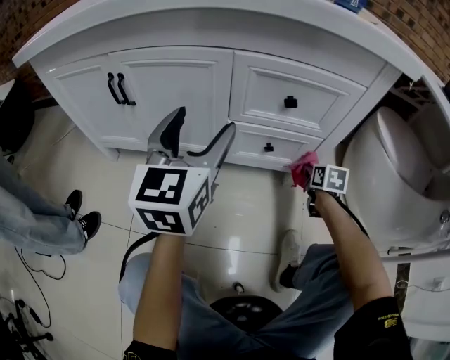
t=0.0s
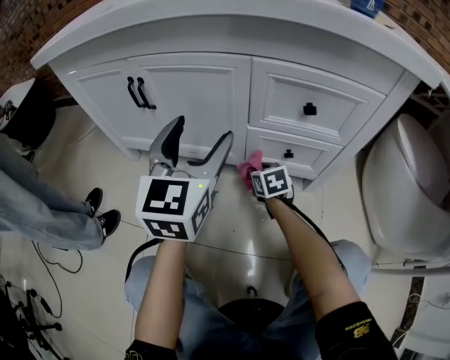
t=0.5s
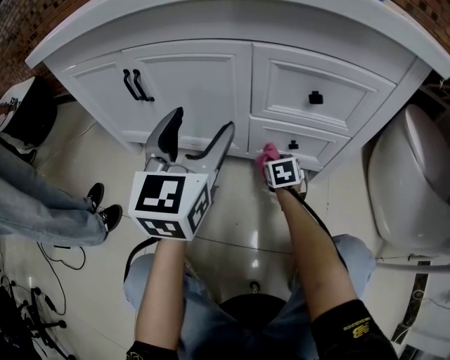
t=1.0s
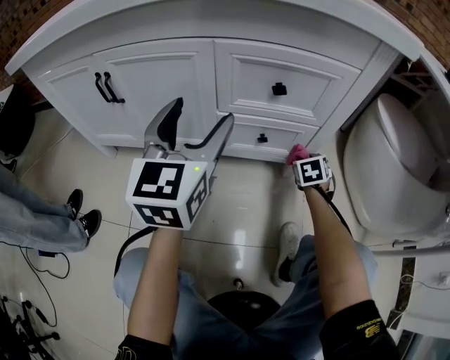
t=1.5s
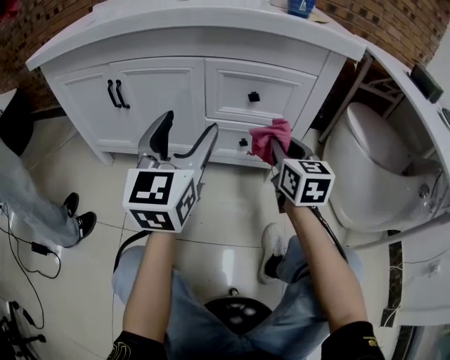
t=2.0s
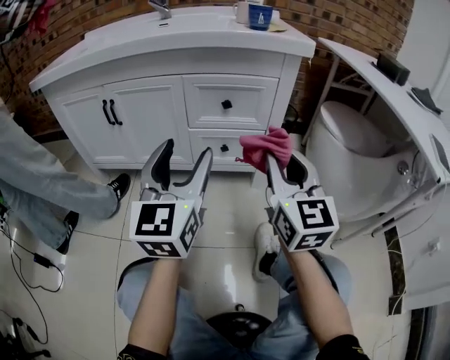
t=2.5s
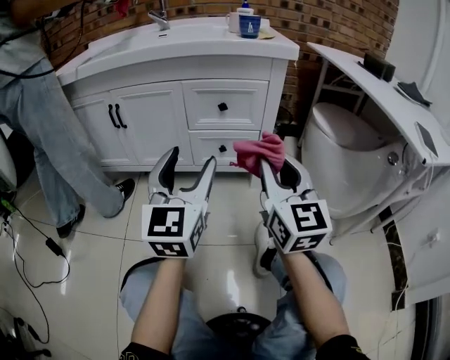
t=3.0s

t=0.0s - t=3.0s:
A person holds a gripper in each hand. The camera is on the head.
t=0.0s - t=1.5s: The right gripper rotates approximately 30 degrees.
t=1.5s - t=3.0s: The right gripper moves upward and backward, some 50 cm, and points its fingers about 60 degrees further upward. The left gripper heads backward, covering some 20 cm.

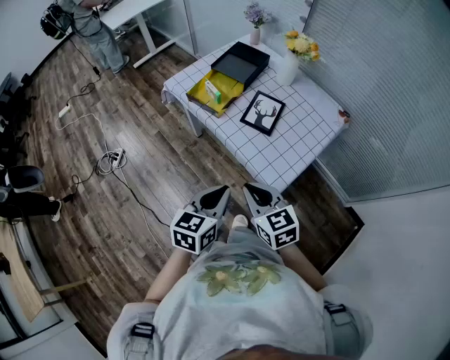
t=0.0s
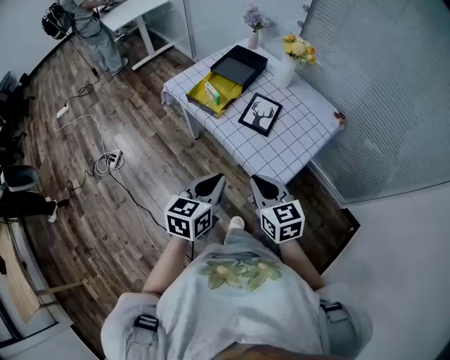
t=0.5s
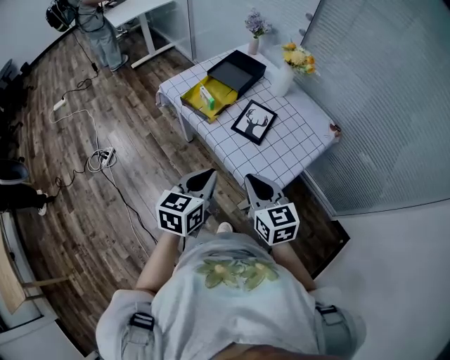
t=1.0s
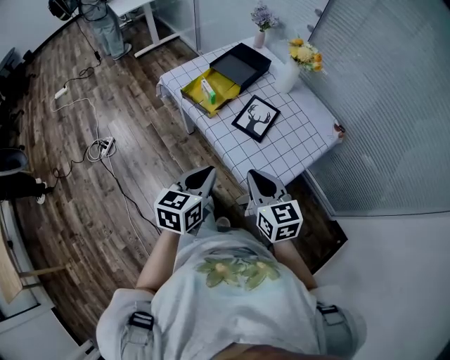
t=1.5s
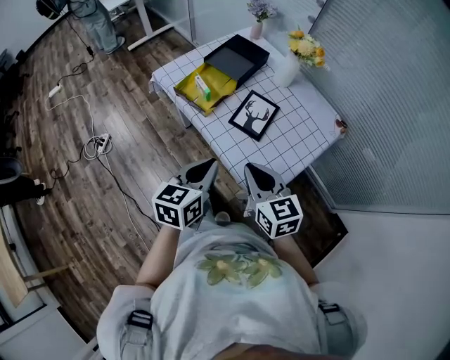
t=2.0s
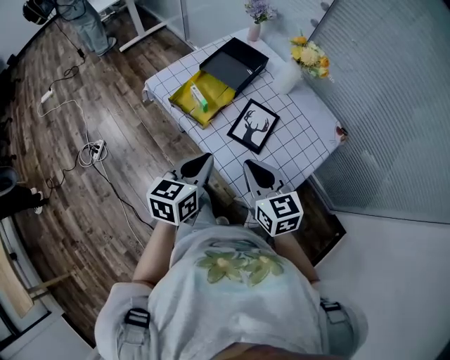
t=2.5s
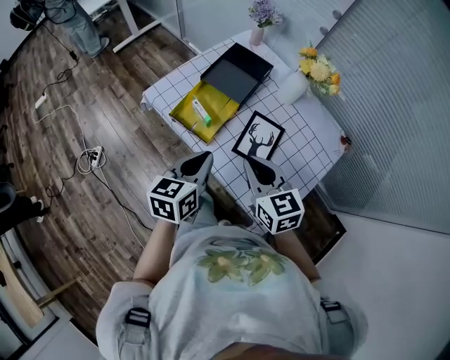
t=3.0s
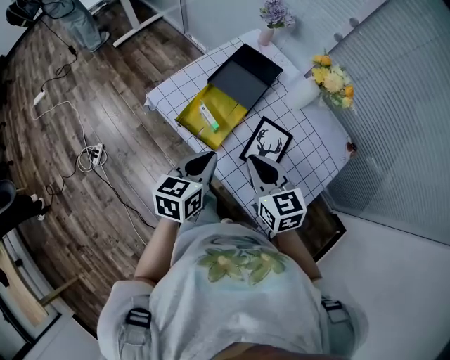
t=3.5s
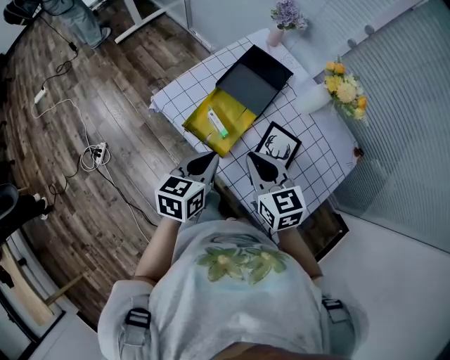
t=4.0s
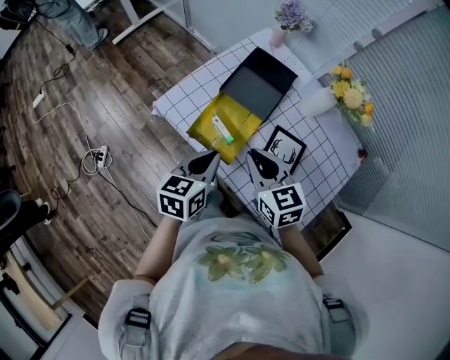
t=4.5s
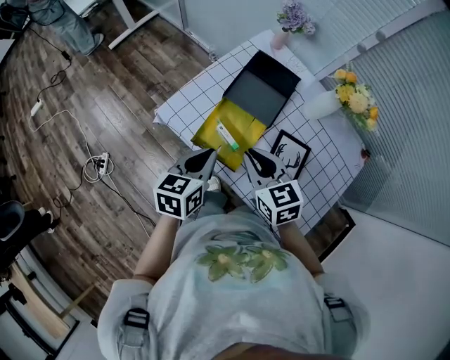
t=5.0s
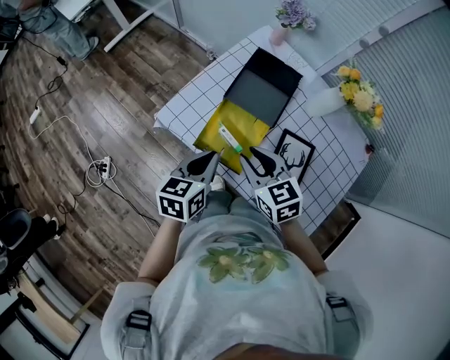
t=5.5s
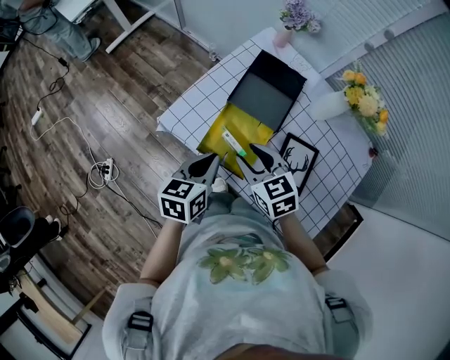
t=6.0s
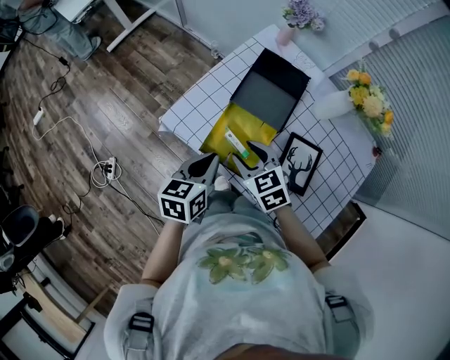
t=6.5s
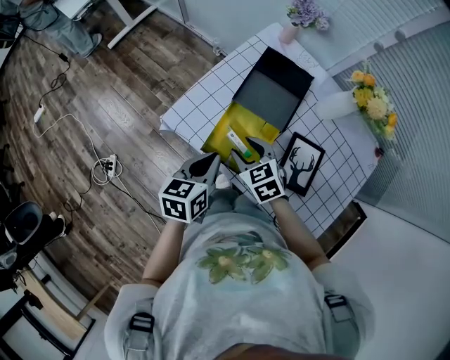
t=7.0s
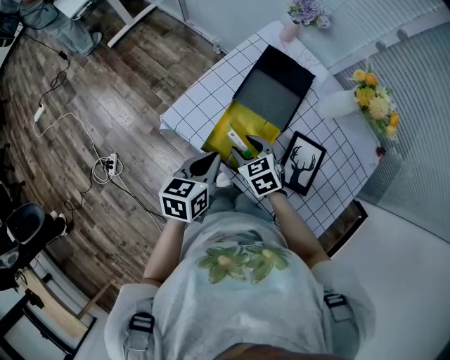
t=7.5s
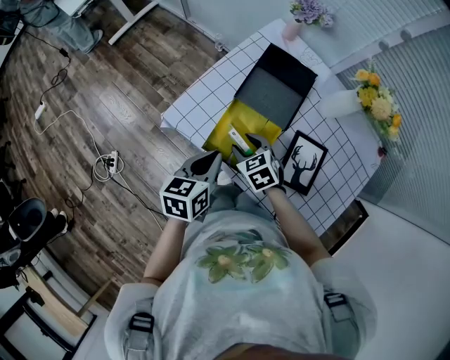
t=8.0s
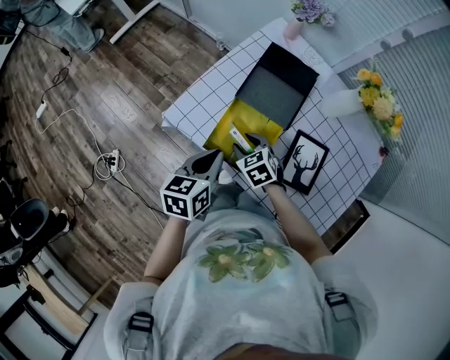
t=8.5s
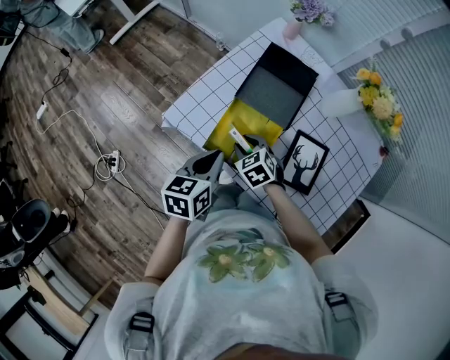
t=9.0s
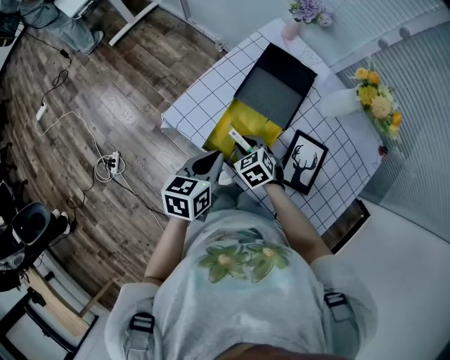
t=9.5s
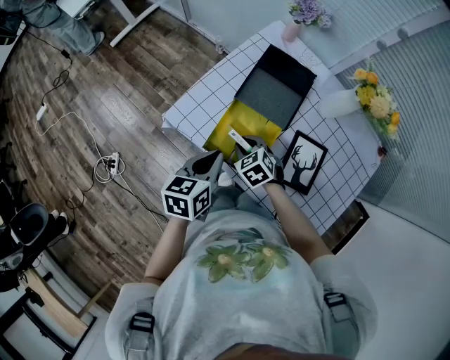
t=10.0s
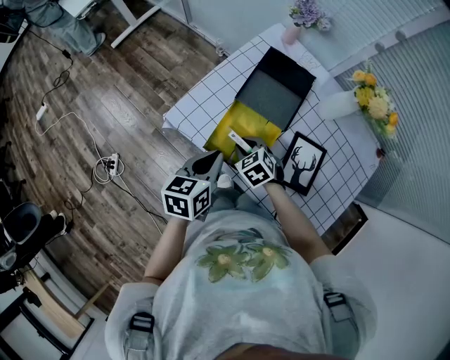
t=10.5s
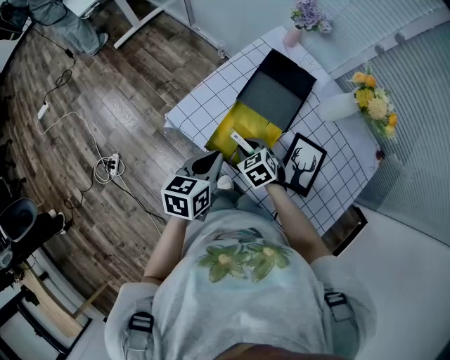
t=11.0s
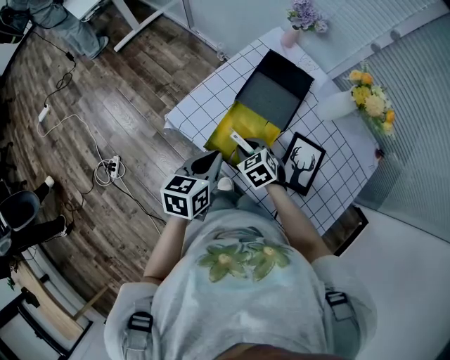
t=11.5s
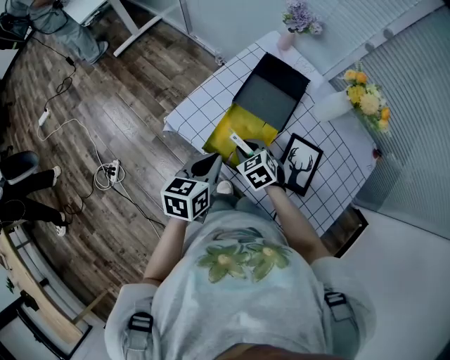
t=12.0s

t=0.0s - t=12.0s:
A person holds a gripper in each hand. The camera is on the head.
t=0.0s - t=2.0s: The grippers both shift forward by roughly 10 cm.
t=2.0s - t=4.0s: Both grippers travel together forward and to the left, roughly 25 cm.
t=4.0s - t=6.0s: The left gripper shifts approximately 10 cm forward and to the left; the right gripper travels forward, to the left and downward by about 15 cm, and opens.
t=6.0s - t=8.0s: The right gripper is displaced downward by approximately 15 cm.
t=8.0s - t=10.0s: The right gripper closes its fingers.
t=10.0s - t=12.0s: There are only small adjustments of the grippers.

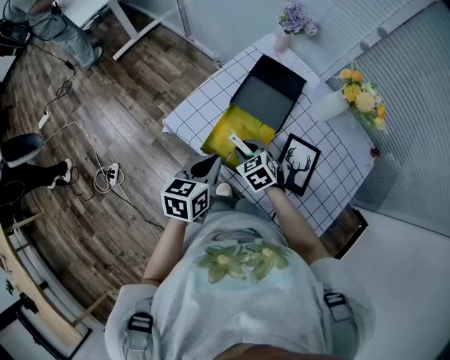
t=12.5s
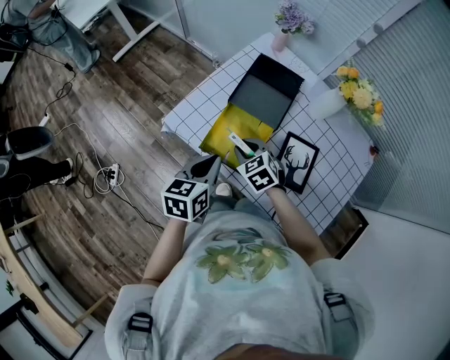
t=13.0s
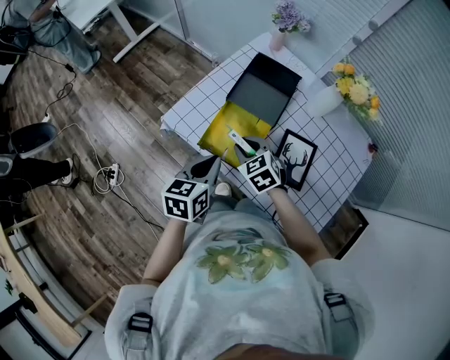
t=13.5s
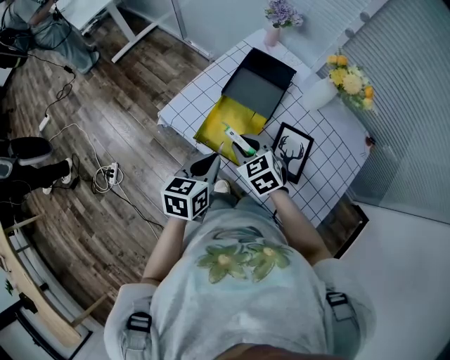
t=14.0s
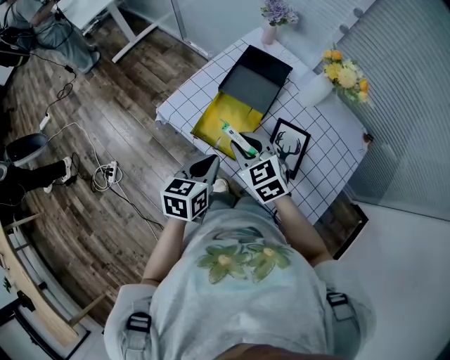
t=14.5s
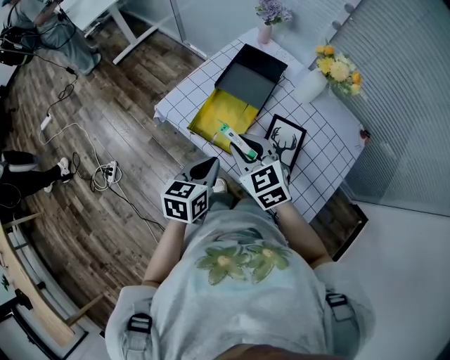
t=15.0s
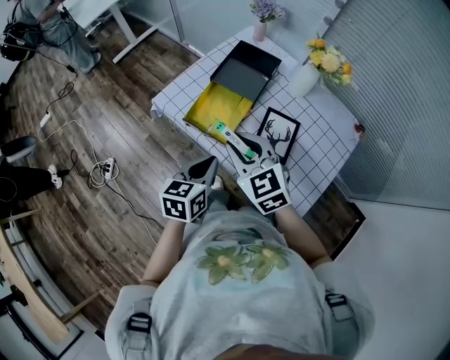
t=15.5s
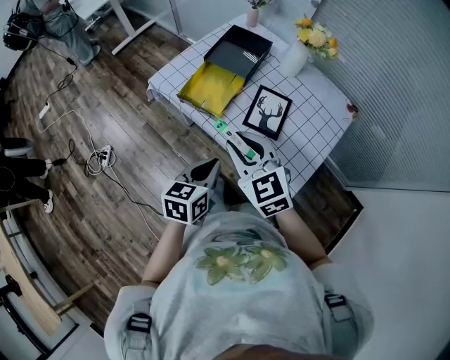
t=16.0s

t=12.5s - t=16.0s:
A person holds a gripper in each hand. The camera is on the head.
t=12.5s - t=14.5s: The left gripper is displaced backward by about 5 cm. Meanwhile the right gripper goes some 15 cm upward and backward.
t=14.5s - t=16.0s: The right gripper goes approximately 20 cm backward and upward, while the left gripper is displaced backward by about 20 cm.

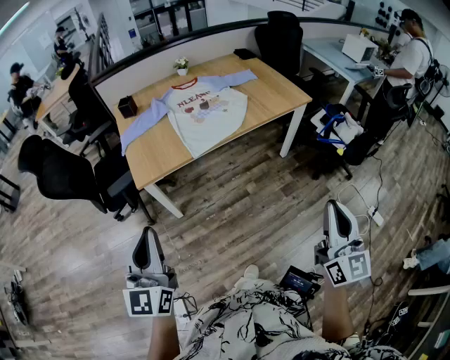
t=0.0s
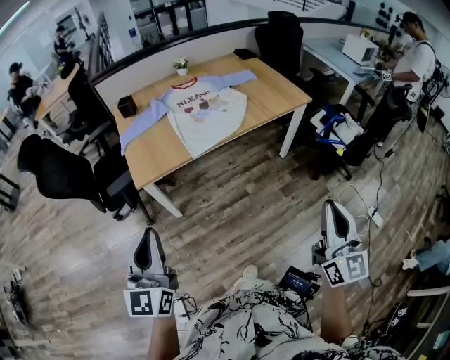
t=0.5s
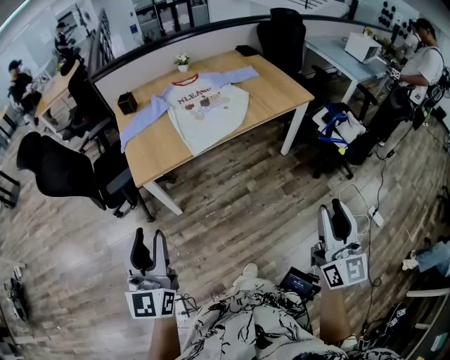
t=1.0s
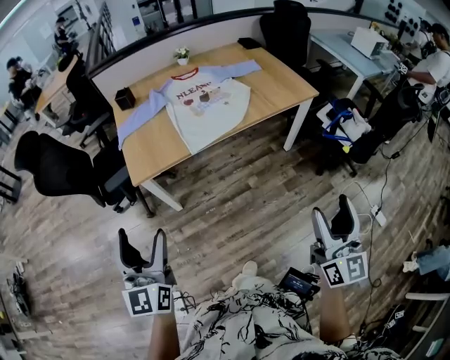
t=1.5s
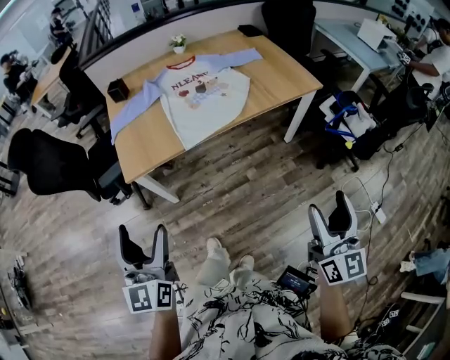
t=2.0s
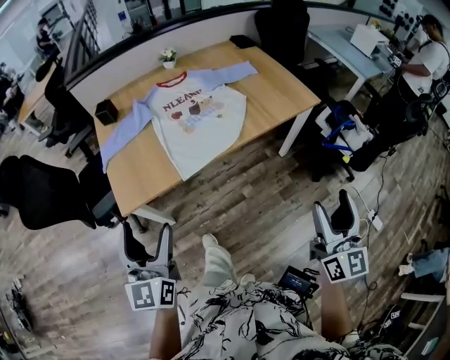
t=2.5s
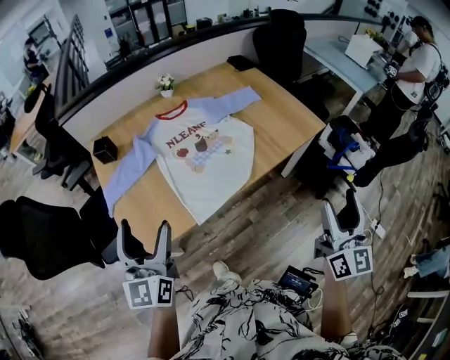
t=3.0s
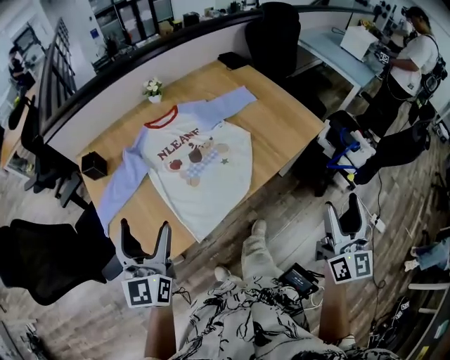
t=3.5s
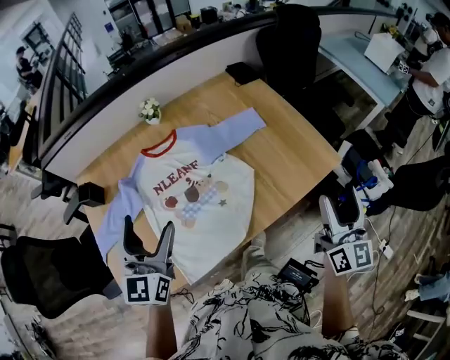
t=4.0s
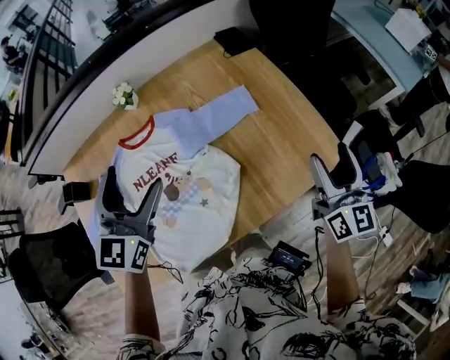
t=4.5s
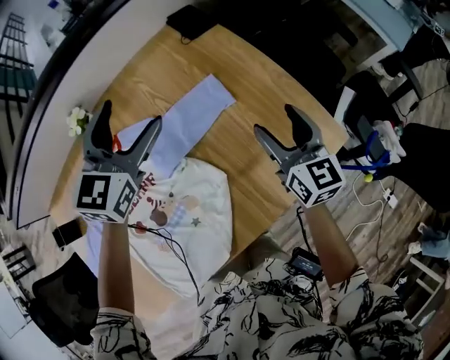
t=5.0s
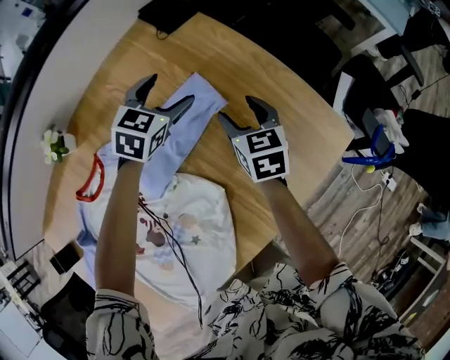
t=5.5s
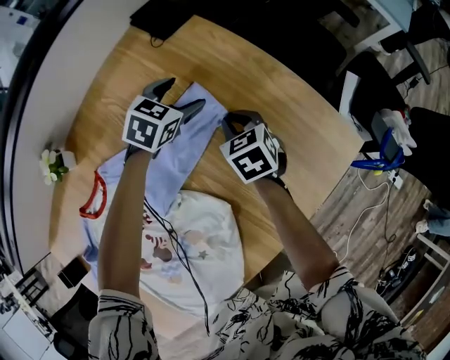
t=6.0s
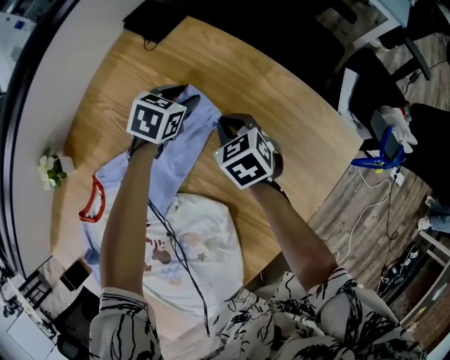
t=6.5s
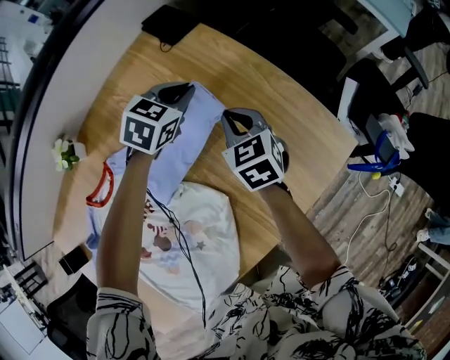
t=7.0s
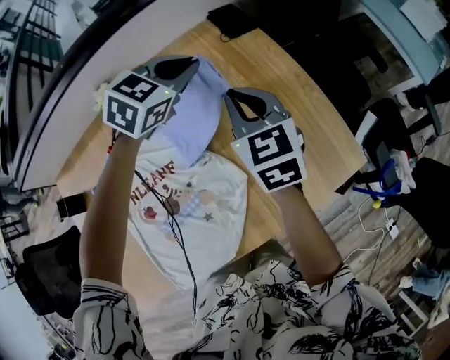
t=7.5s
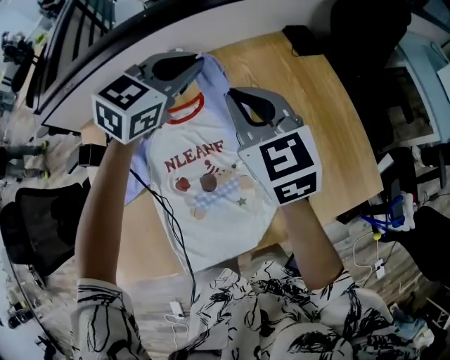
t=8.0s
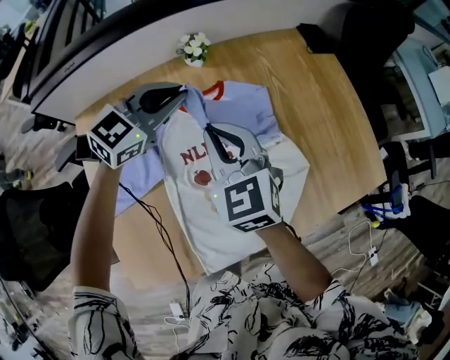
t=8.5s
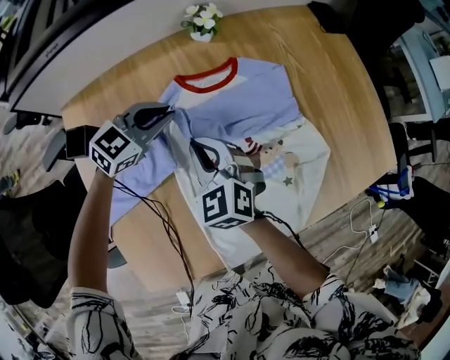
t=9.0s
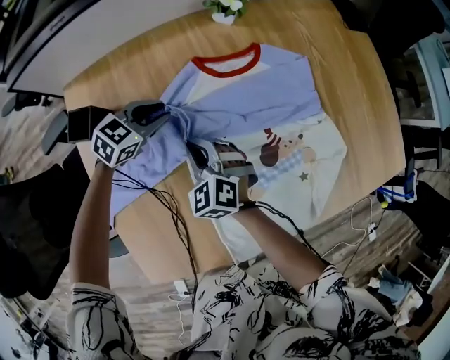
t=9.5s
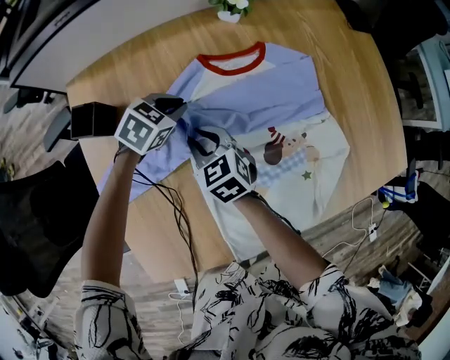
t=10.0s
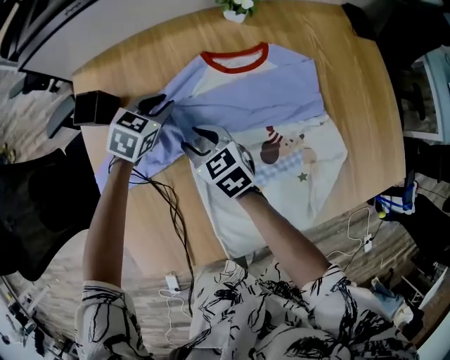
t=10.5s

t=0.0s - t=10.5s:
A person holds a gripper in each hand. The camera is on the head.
t=0.0s - t=2.0s: Both grippers move forward, approximately 10 cm. The right gripper opens its fingers; the left gripper opens up.
t=2.0s - t=4.0s: The two grippers travel together, forward, roughly 60 cm.
t=4.0s - t=6.5s: The left gripper is displaced forward and downward by some 70 cm, points its fingers some 50 degrees further downward, and closes its fingers. The right gripper goes about 60 cm forward, downward and to the left, angles its fingers downward, by approximately 60 degrees, and closes its fingers.
t=6.5s - t=8.5s: Both grippers are carried roughly 50 cm. The right gripper swivels approximately 40 degrees. Meanwhile the left gripper tilts its fingers some 30 degrees upward, and closes its fingers.
t=8.5s - t=10.5s: The two grippers go approximately 25 cm downward. The right gripper turns by about 30 degrees, and opens its fingers, while the left gripper swivels approximately 40 degrees.
